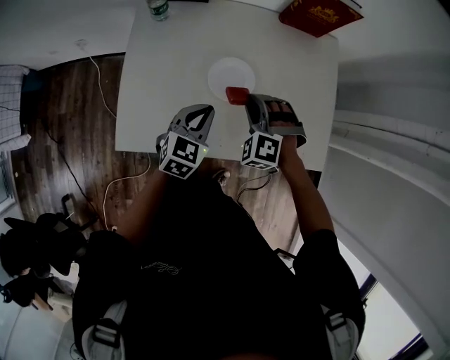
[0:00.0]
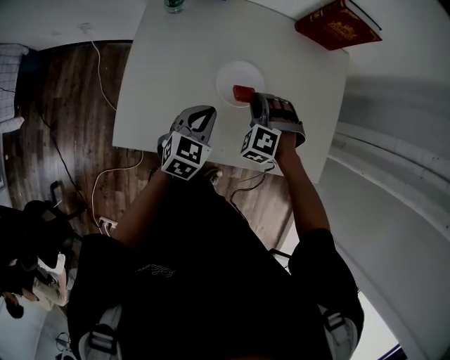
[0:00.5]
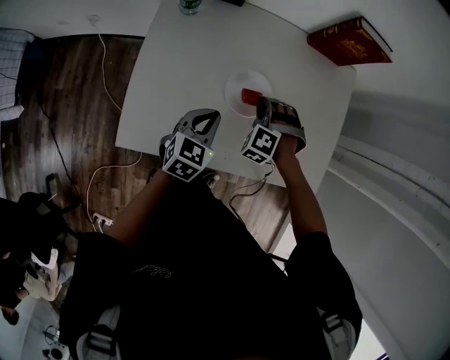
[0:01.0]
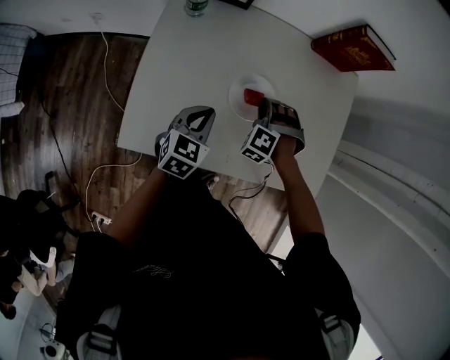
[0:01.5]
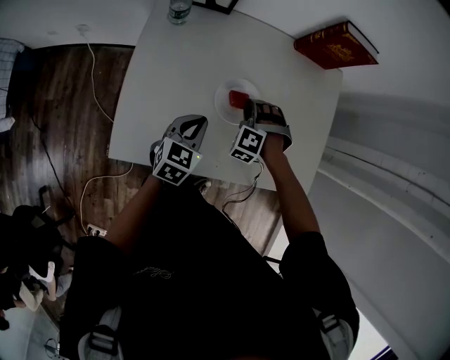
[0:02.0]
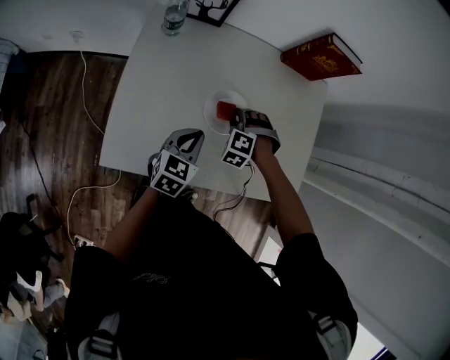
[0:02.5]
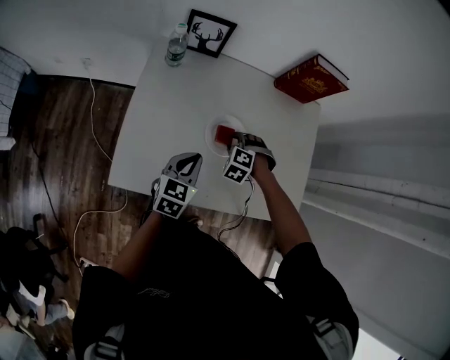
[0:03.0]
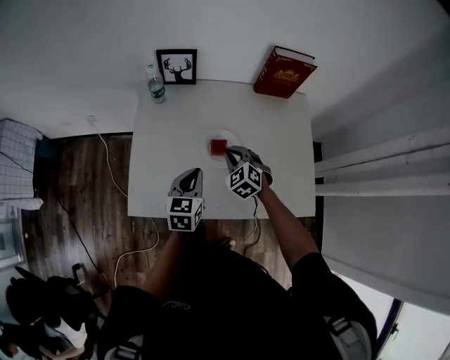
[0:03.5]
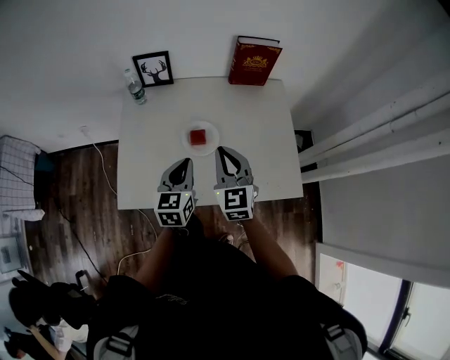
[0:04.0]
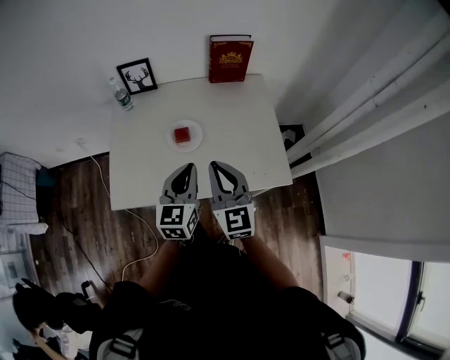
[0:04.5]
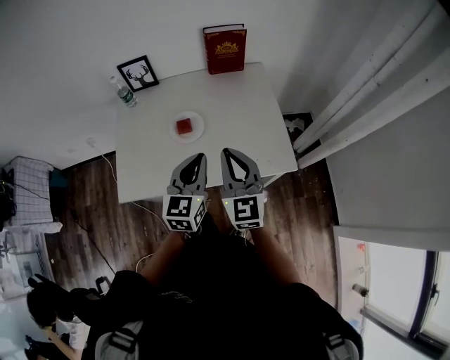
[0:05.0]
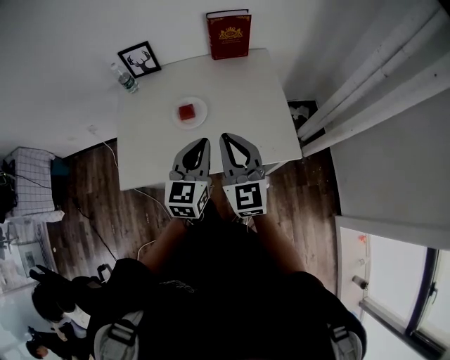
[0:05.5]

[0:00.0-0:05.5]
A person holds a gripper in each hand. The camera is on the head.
0:00.0 to 0:02.0: The right gripper is displaced downward and forward by some 10 cm, while the left gripper moves roughly 5 cm.
0:02.0 to 0:03.5: Both grippers move upward, approximately 5 cm. The right gripper rotates around the line of its fingers by some 40 degrees, clockwise from behind.
0:03.5 to 0:05.5: The left gripper heads to the right, upward and backward, covering roughly 25 cm, and swivels approximately 20 degrees. The right gripper moves upward, backward and to the right, about 30 cm, and points its fingers some 40 degrees further upward.

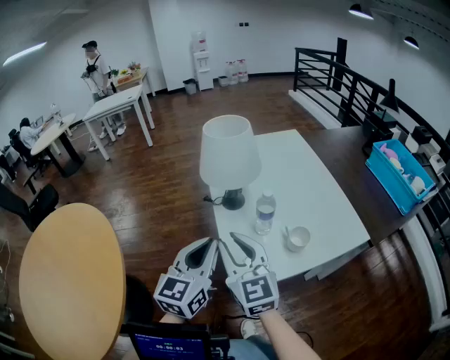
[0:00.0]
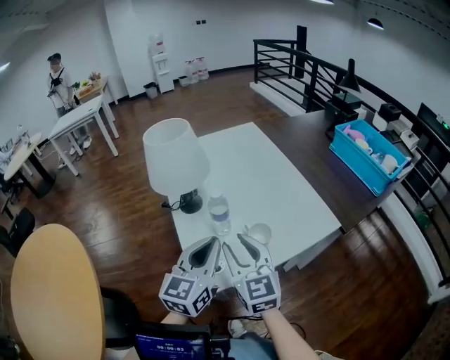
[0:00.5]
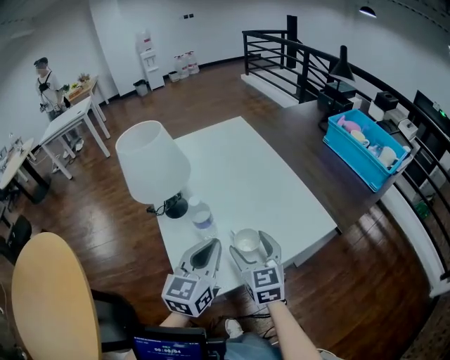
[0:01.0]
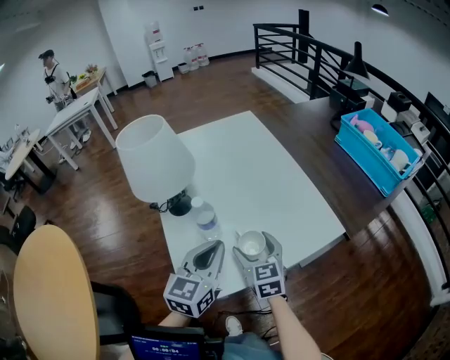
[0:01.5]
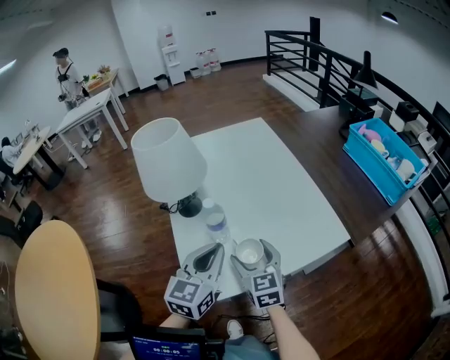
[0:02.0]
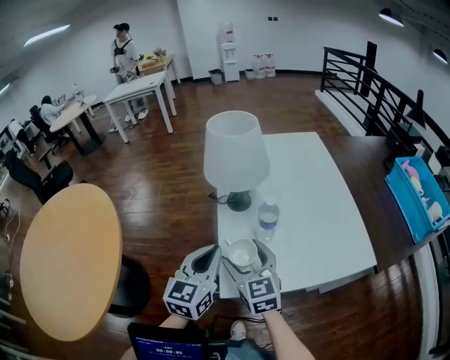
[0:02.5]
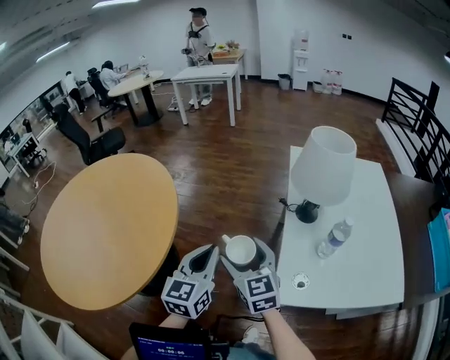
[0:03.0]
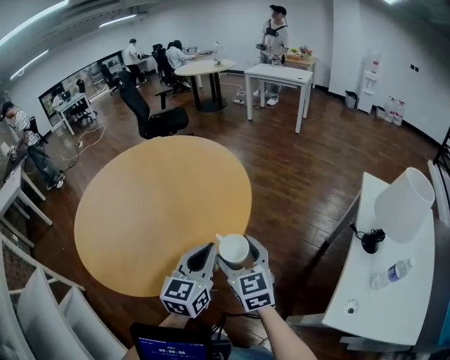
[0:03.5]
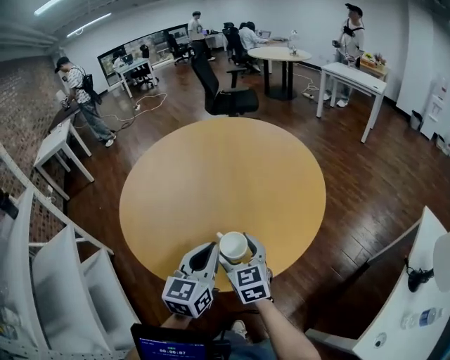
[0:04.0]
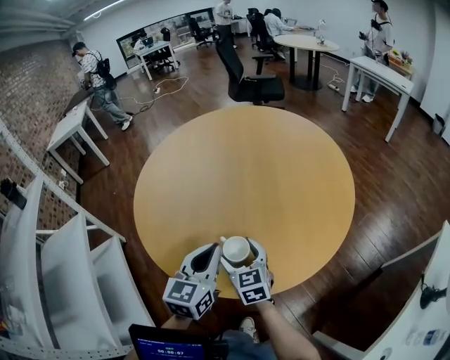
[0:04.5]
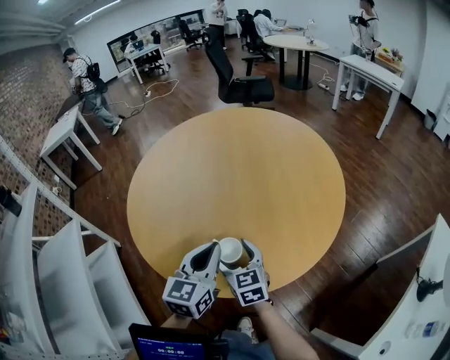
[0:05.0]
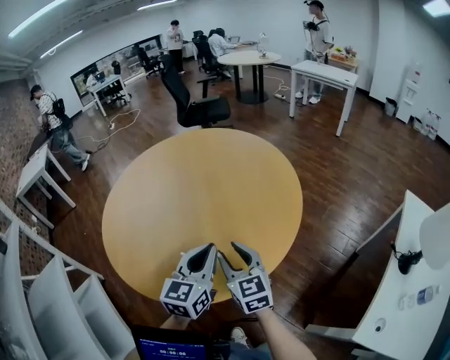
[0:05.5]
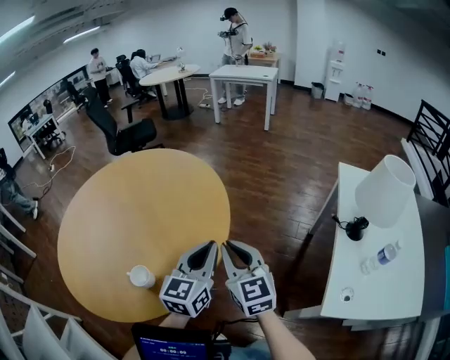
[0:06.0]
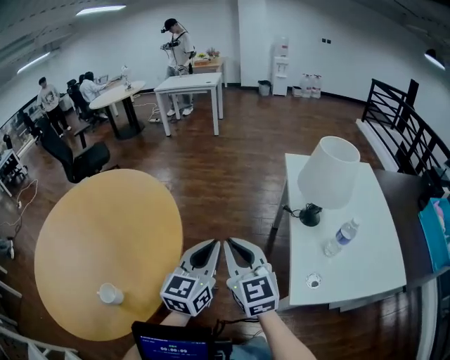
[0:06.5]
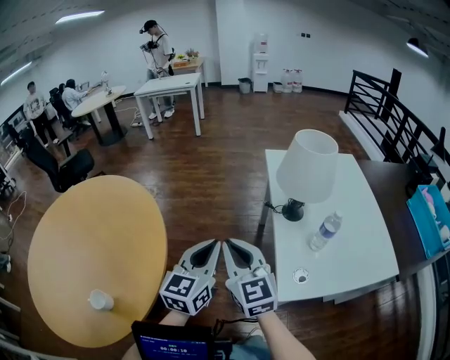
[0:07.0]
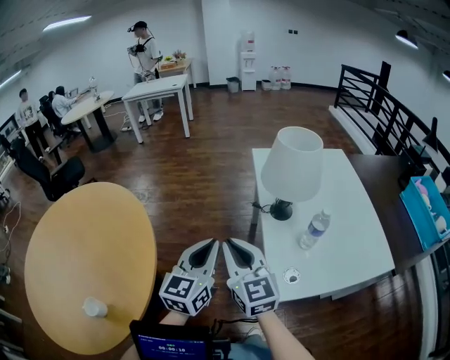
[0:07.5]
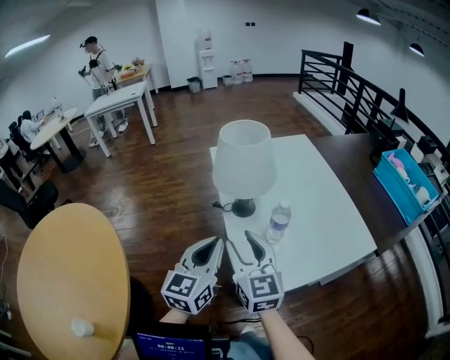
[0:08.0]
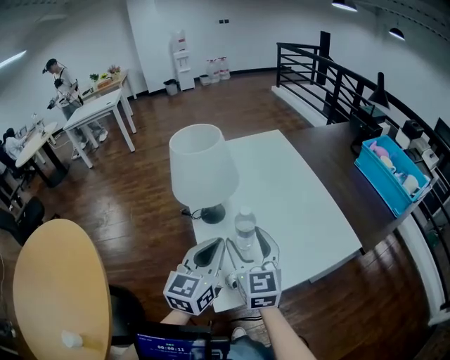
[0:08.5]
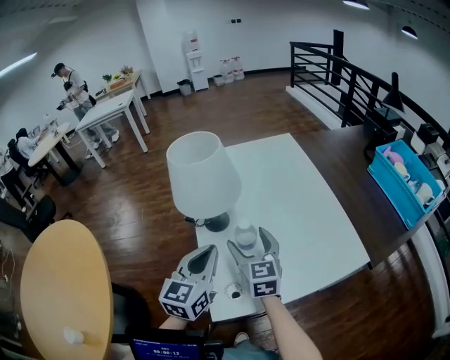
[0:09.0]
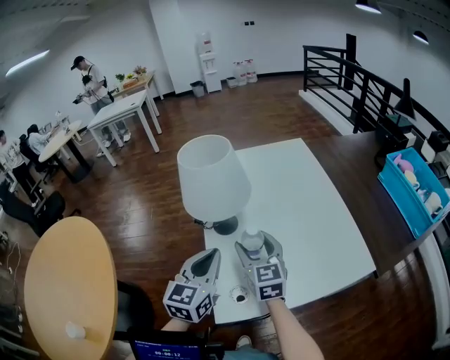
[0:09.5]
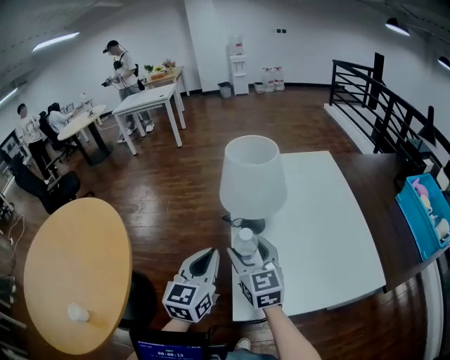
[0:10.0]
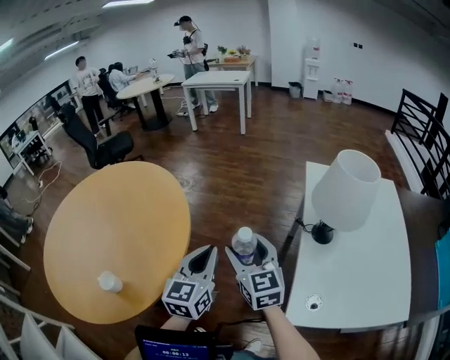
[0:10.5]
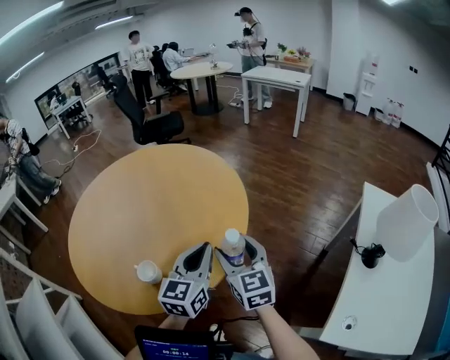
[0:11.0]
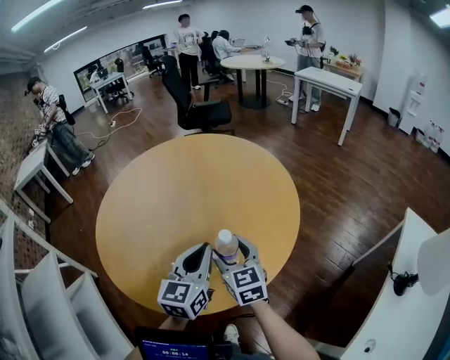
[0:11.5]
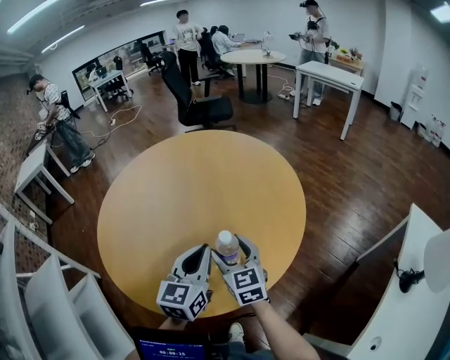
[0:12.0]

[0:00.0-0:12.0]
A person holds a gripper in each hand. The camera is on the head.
0:00.0 to 0:02.0: Both grippers move to the right, downward and forward, about 20 cm. The right gripper changes its angle by roughly 20 degrees, and opens up.
0:02.0 to 0:04.0: The two grippers travel together, approximately 80 cm. The right gripper changes its angle by some 80 degrees, while the left gripper swivels approximately 80 degrees.
0:04.0 to 0:06.0: The right gripper shifts by about 30 cm, swivels approximately 30 degrees, and closes up. Meanwhile the left gripper shifts by some 25 cm, and swivels roughly 30 degrees.
0:06.0 to 0:08.0: The right gripper changes place by approximately 40 cm, changes its angle by roughly 40 degrees, and opens; the left gripper moves approximately 40 cm, and changes its angle by approximately 40 degrees.
0:08.0 to 0:10.0: The right gripper heads forward, covering about 5 cm, and reaches approximately 15 cm to the right, then returns; the left gripper reaches approximately 10 cm to the right, then returns.
0:10.0 to 0:12.0: Both grippers are carried about 70 cm. The left gripper swivels about 50 degrees. The right gripper turns by about 50 degrees.

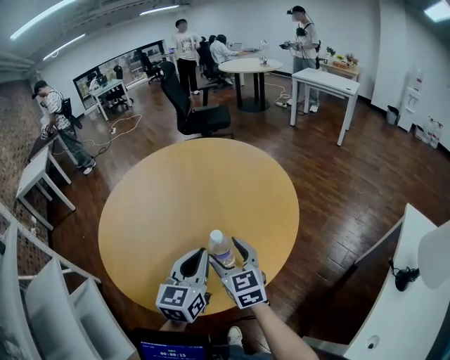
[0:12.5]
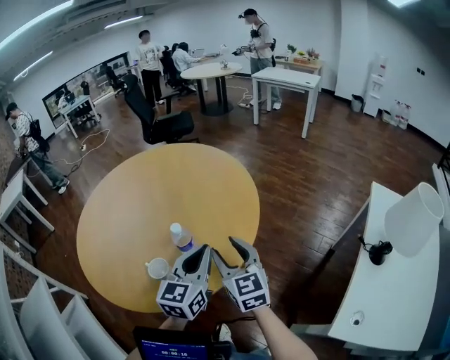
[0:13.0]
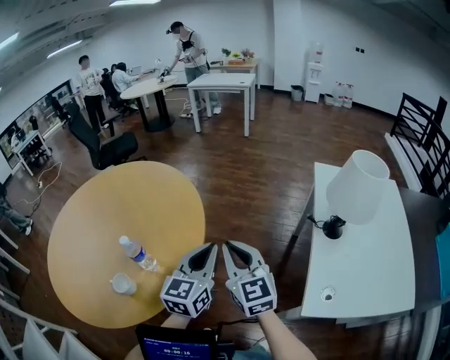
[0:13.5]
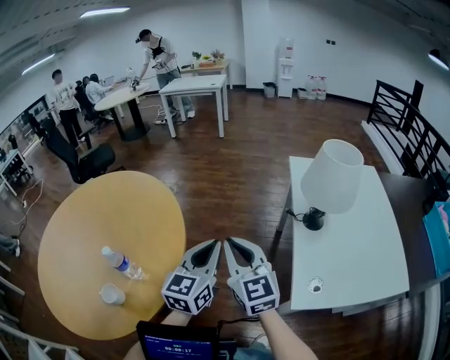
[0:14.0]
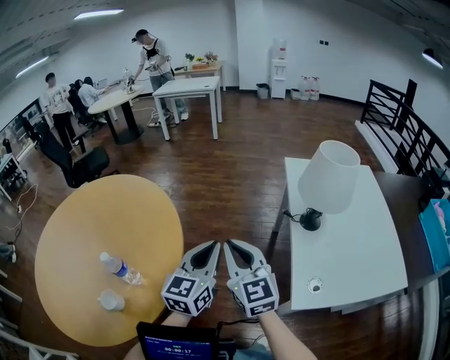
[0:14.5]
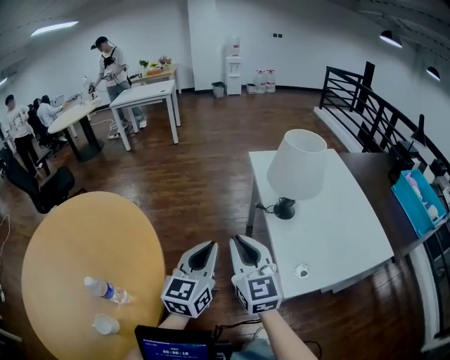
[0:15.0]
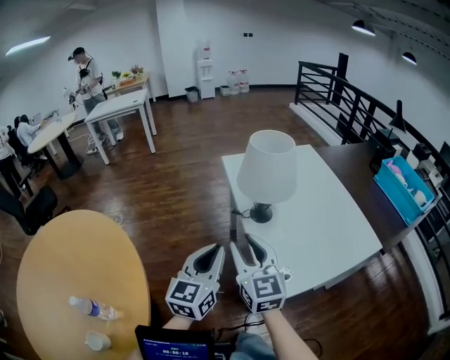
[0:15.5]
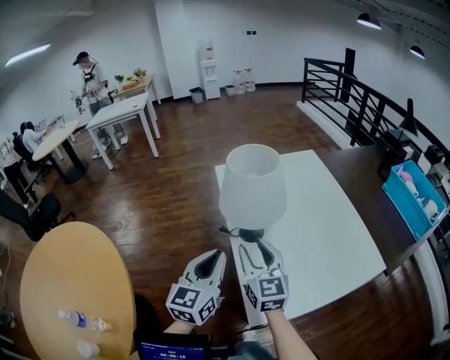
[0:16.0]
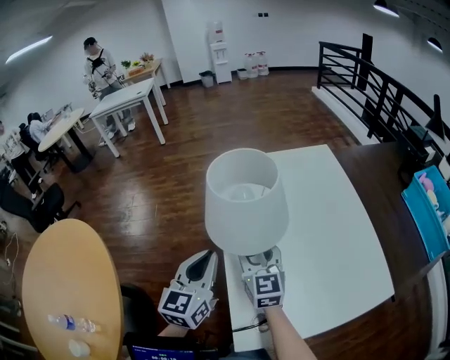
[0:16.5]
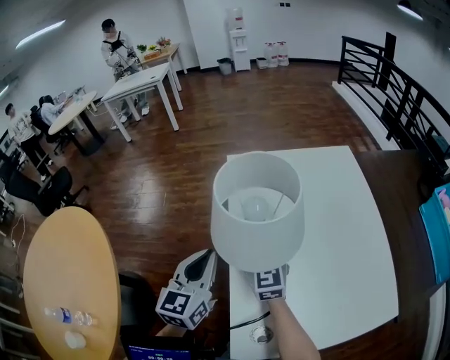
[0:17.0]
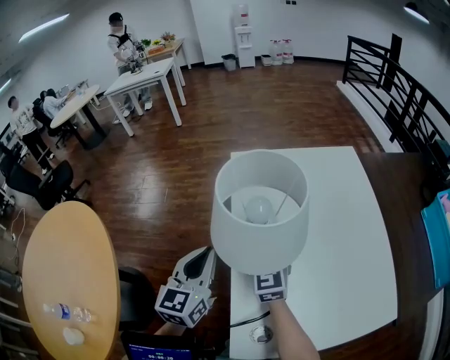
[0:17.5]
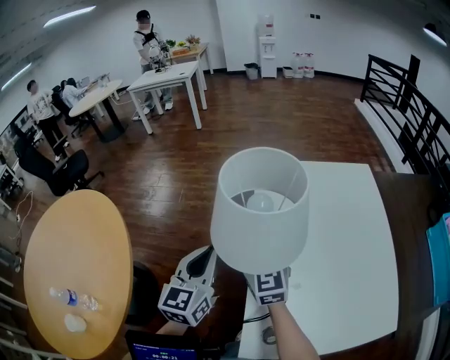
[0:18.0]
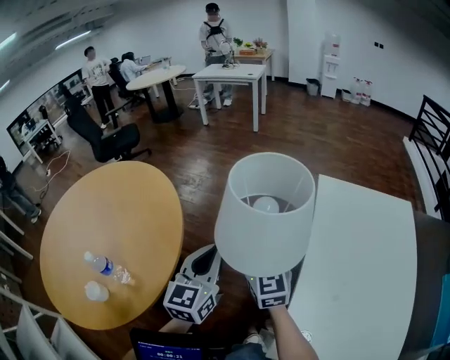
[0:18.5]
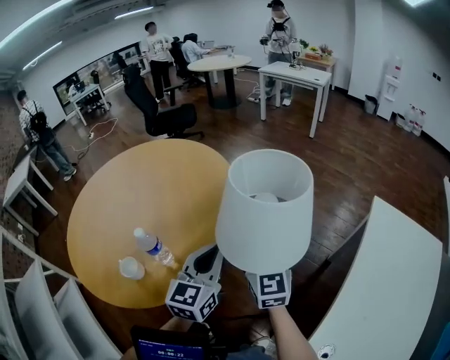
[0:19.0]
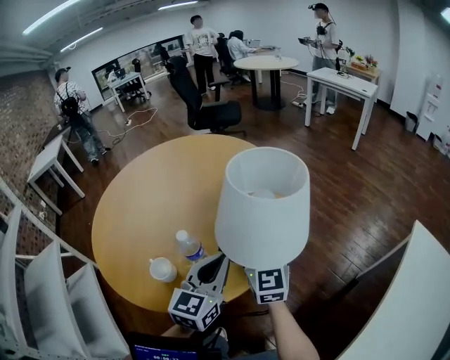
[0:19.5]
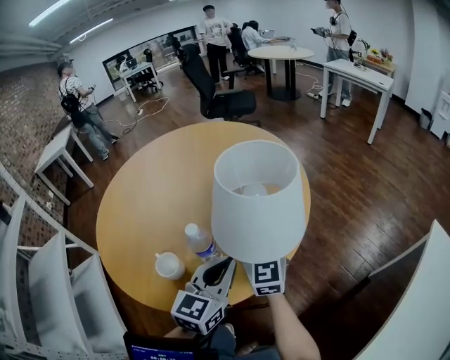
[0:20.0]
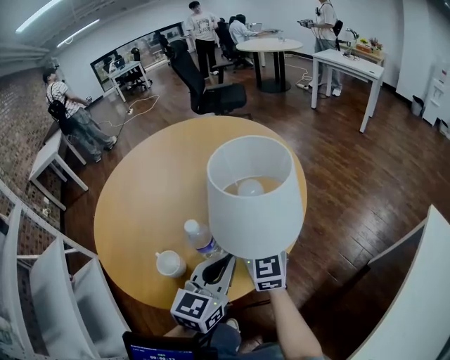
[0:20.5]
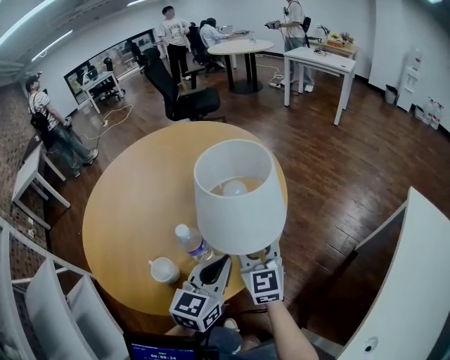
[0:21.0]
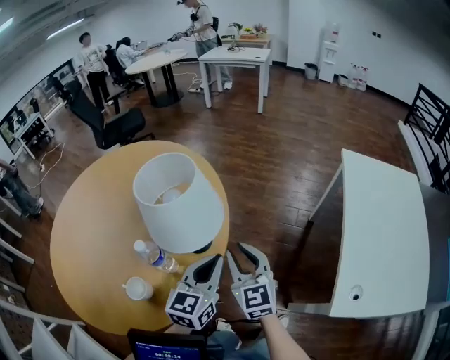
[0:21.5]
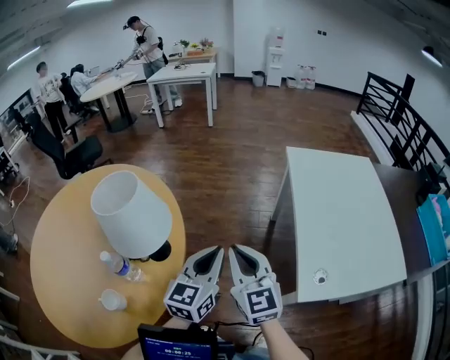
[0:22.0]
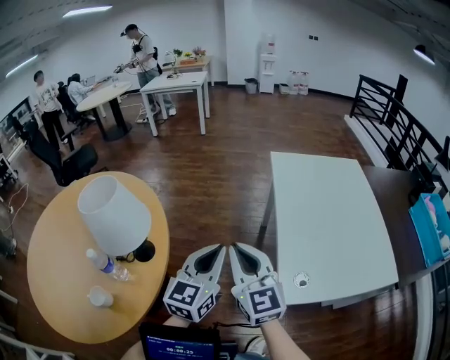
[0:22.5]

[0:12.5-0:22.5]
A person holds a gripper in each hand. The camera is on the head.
0:12.5 to 0:14.5: The right gripper moves roughly 40 cm, changes its angle by some 40 degrees, and closes its fingers; the left gripper moves about 40 cm, and changes its angle by some 40 degrees.
0:14.5 to 0:16.5: Both grippers travel together to the right and forward, approximately 35 cm. The right gripper rotates approximately 30 degrees, and opens.
0:16.5 to 0:18.5: The left gripper shifts by roughly 25 cm, and rotates roughly 30 degrees. The right gripper moves about 30 cm, and turns by about 30 degrees.
0:18.5 to 0:20.5: The right gripper shifts by some 40 cm, and changes its angle by approximately 30 degrees, while the left gripper ends up approximately 35 cm from where it was, and changes its angle by some 20 degrees.
0:20.5 to 0:22.5: The right gripper shifts by about 40 cm, swivels some 40 degrees, and closes; the left gripper ends up approximately 35 cm from where it was, and turns by roughly 50 degrees.
